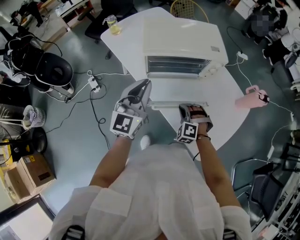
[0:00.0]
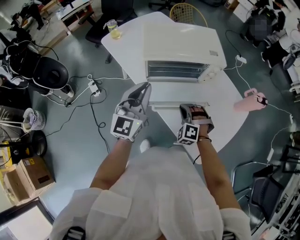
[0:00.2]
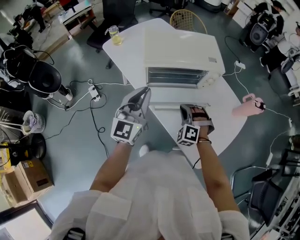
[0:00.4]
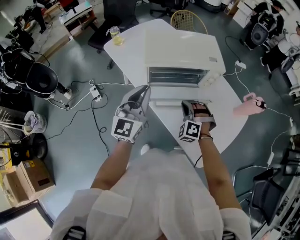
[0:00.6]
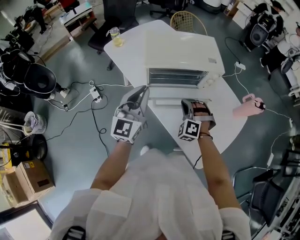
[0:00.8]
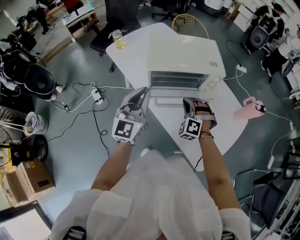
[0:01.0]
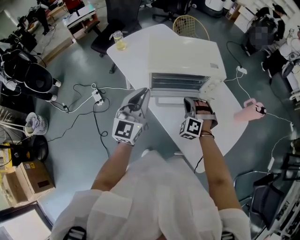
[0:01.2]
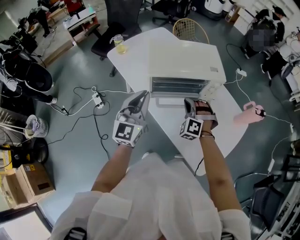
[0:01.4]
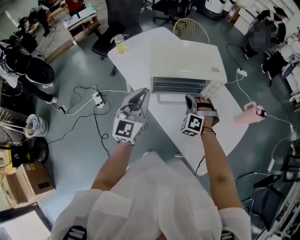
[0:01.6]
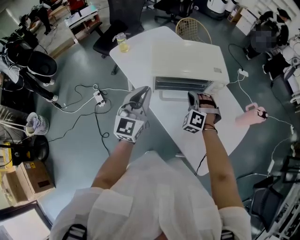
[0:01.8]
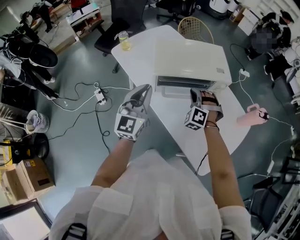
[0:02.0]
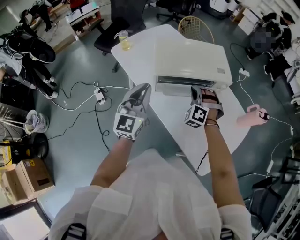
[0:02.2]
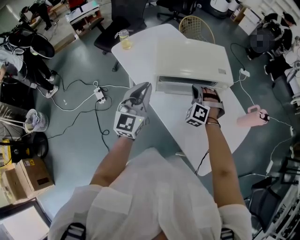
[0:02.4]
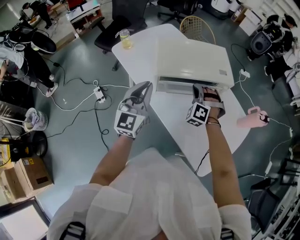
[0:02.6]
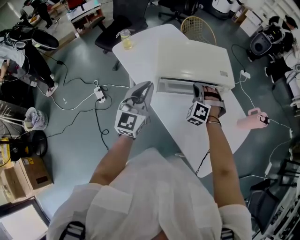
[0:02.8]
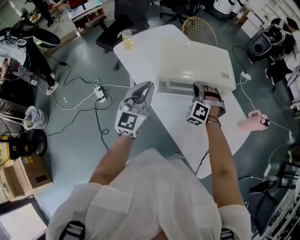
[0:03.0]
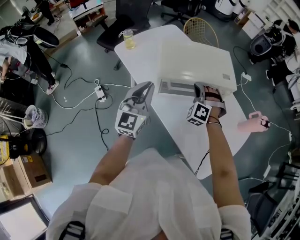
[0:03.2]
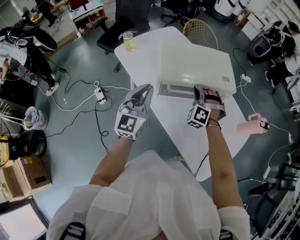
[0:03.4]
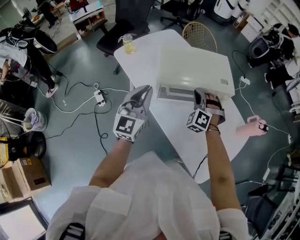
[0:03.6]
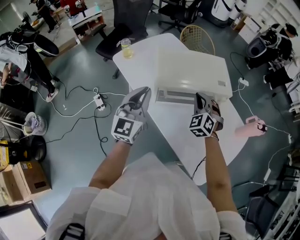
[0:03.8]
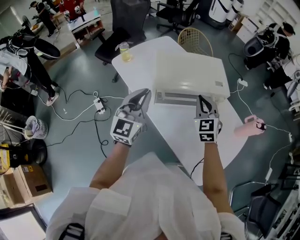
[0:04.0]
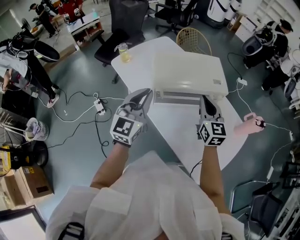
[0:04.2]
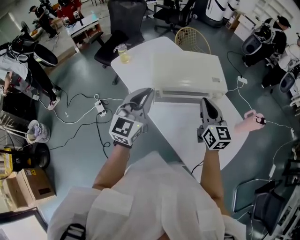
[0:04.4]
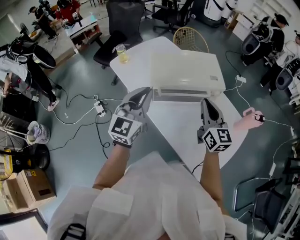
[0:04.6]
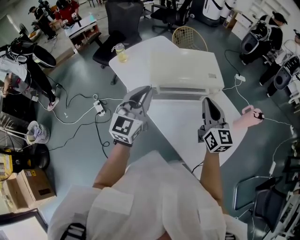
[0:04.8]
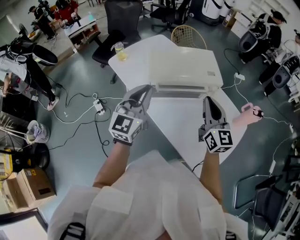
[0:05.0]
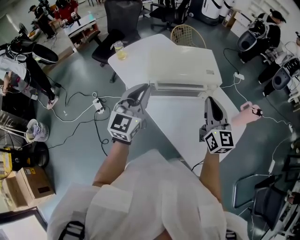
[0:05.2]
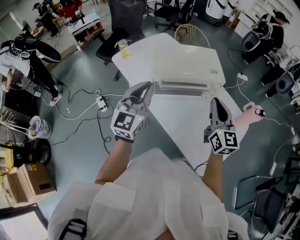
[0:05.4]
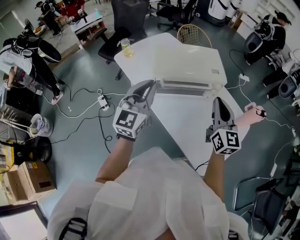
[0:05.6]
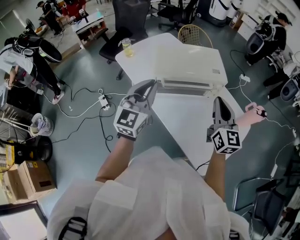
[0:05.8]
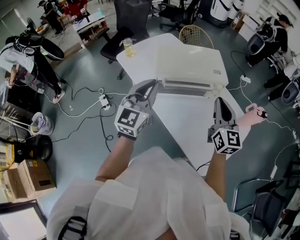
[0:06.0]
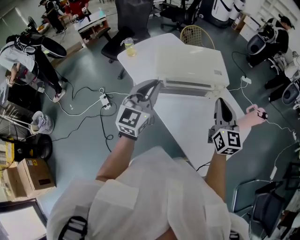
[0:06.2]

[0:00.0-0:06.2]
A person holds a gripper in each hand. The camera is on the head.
0:00.0 to 0:01.6: The right gripper is displaced upward and forward by some 15 cm.
0:01.6 to 0:03.2: The right gripper travels forward by some 5 cm. Meanwhile the left gripper ends up about 5 cm from where it was.
0:03.2 to 0:04.6: The left gripper is displaced upward by roughly 5 cm. The right gripper moves upward, backward and to the right, some 20 cm, and rolls clockwise, seen from behind, by roughly 80 degrees.
0:04.6 to 0:06.2: The right gripper shifts by roughly 5 cm.

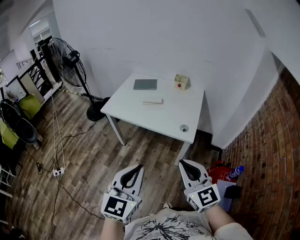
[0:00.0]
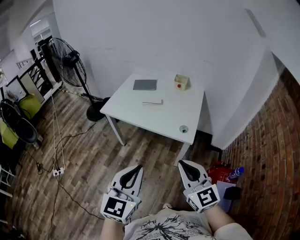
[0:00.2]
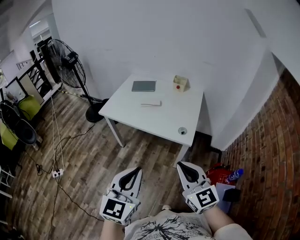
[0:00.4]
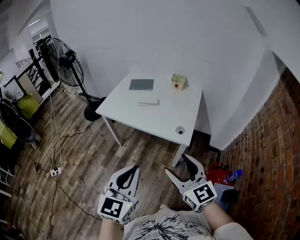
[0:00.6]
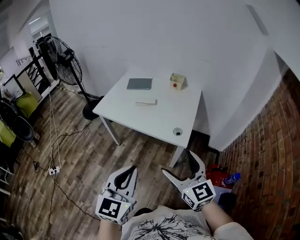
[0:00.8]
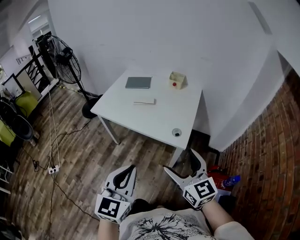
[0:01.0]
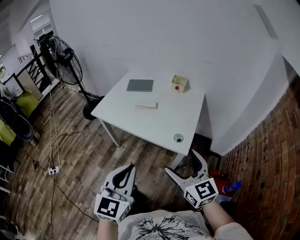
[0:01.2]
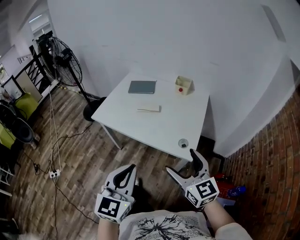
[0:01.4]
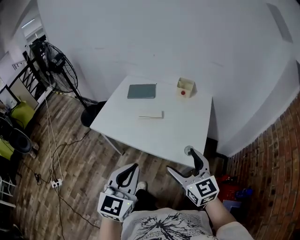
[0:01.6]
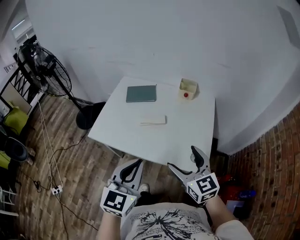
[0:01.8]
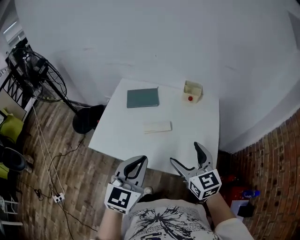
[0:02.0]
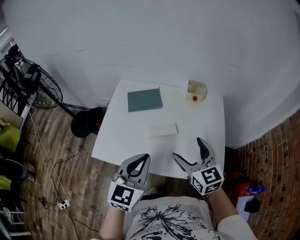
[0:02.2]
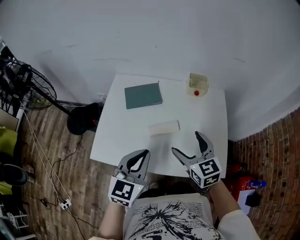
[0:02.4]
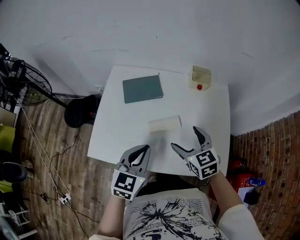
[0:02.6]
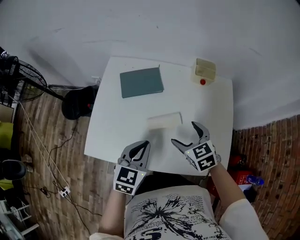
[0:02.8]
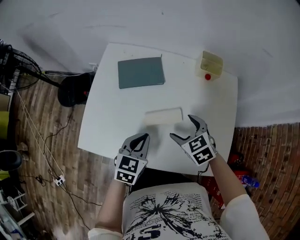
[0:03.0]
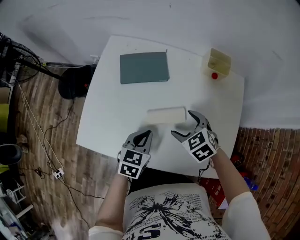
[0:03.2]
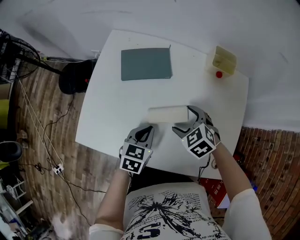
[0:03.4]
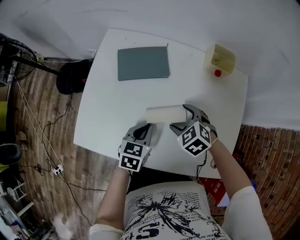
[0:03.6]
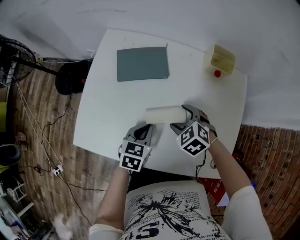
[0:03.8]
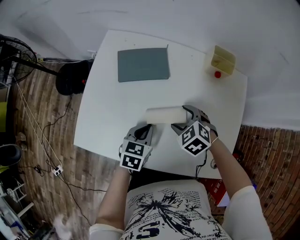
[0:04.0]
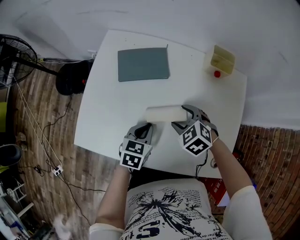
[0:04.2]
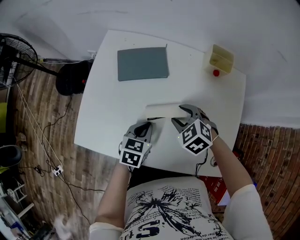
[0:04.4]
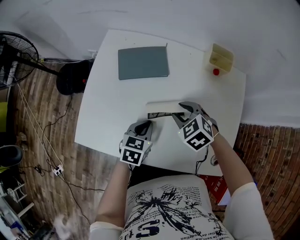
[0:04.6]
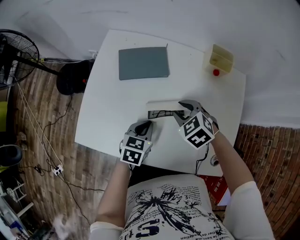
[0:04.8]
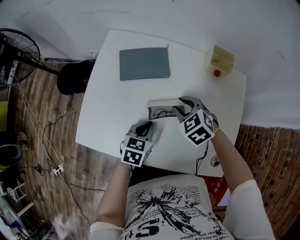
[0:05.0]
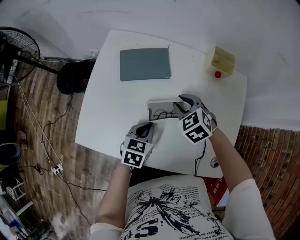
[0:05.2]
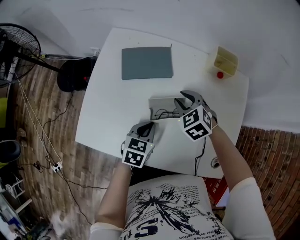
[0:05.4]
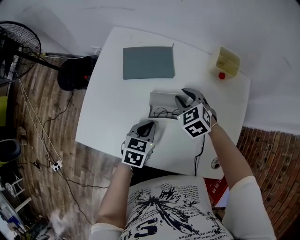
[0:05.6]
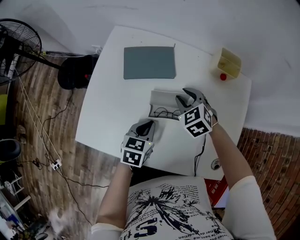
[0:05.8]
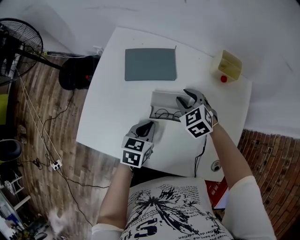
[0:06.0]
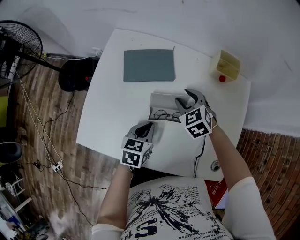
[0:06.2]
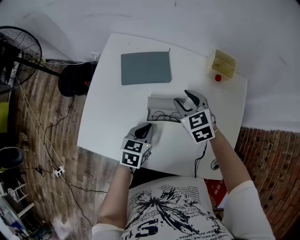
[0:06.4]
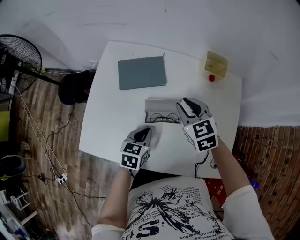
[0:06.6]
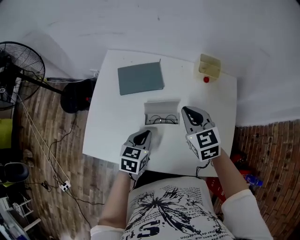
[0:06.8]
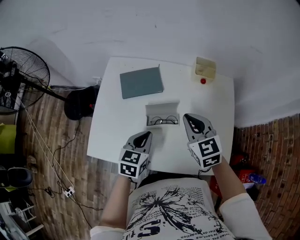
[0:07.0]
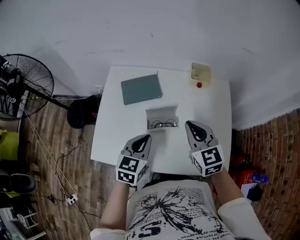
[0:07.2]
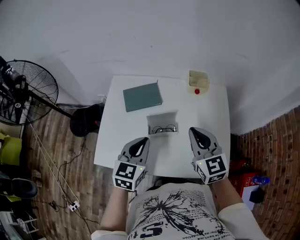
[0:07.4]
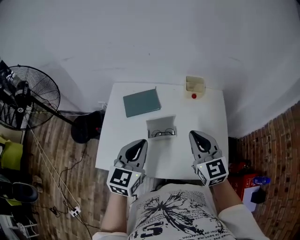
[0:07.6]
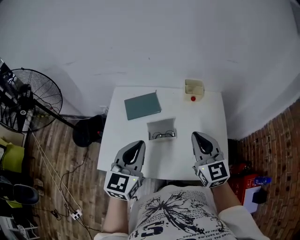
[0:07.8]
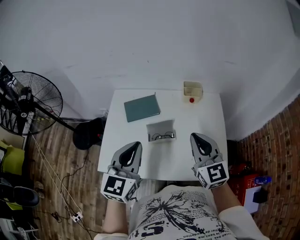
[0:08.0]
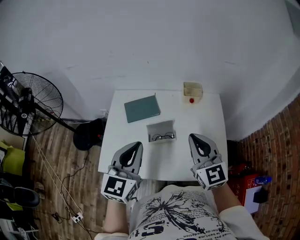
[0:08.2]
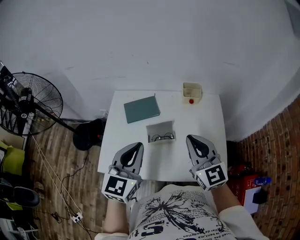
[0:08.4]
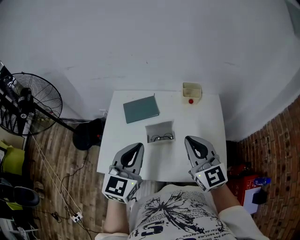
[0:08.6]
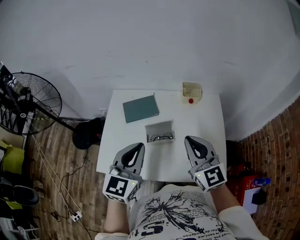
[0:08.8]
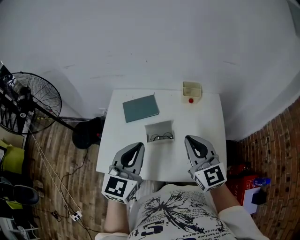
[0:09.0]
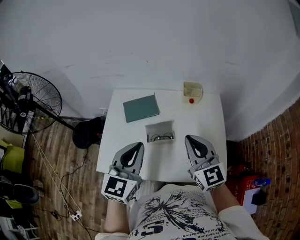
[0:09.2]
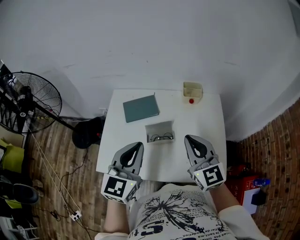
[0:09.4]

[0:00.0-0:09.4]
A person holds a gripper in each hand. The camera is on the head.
0:00.0 to 0:01.6: The two grippers go some 25 cm forward. The right gripper opens.
0:01.6 to 0:03.2: The right gripper heads forward, downward and to the left, covering roughly 40 cm, and tilts its fingers some 40 degrees downward, while the left gripper moves forward and downward, some 40 cm, and swivels roughly 30 degrees.
0:03.2 to 0:04.8: The right gripper closes its fingers.
0:04.8 to 0:06.2: The right gripper shifts about 10 cm forward.
0:06.2 to 0:07.8: The right gripper shifts about 30 cm upward and backward, angles its fingers upward, by roughly 40 degrees, and closes, while the left gripper goes approximately 30 cm upward, and points its fingers some 30 degrees further upward.
0:07.8 to 0:09.4: The grippers move only a little.

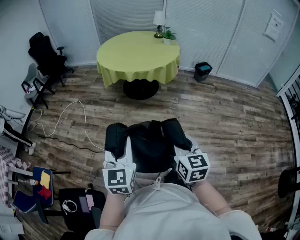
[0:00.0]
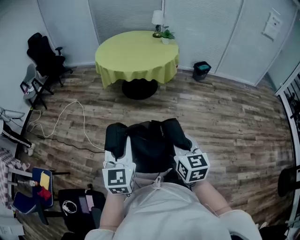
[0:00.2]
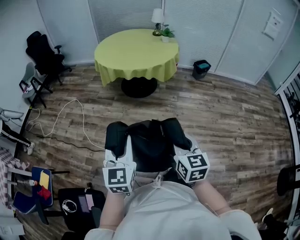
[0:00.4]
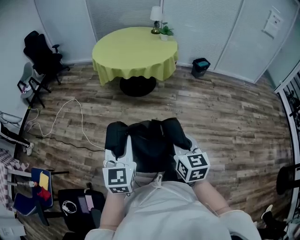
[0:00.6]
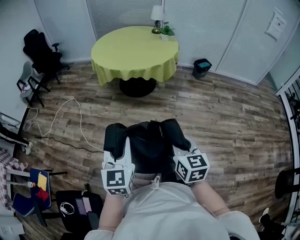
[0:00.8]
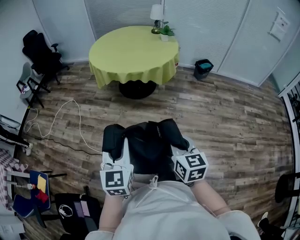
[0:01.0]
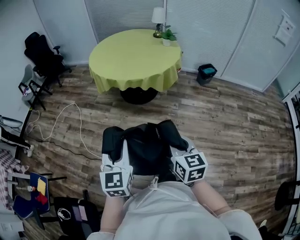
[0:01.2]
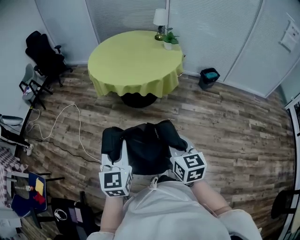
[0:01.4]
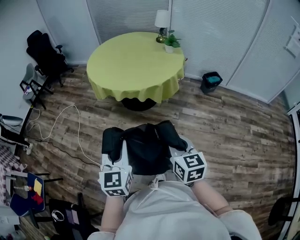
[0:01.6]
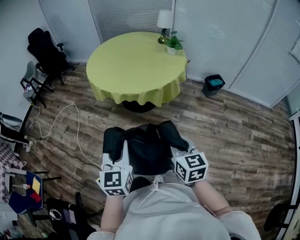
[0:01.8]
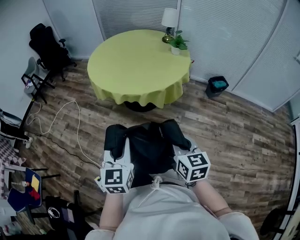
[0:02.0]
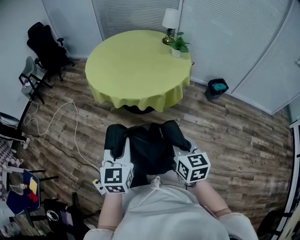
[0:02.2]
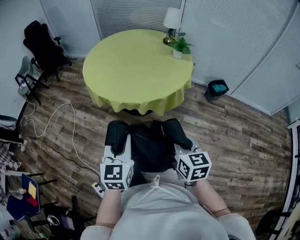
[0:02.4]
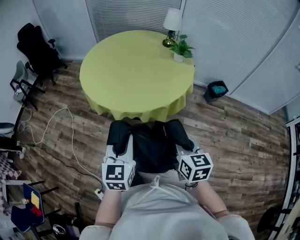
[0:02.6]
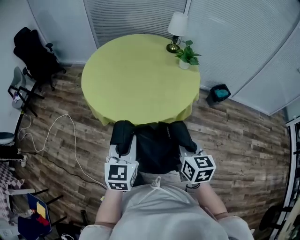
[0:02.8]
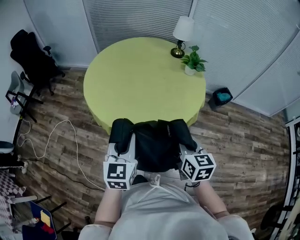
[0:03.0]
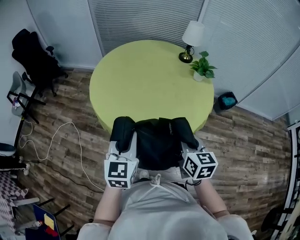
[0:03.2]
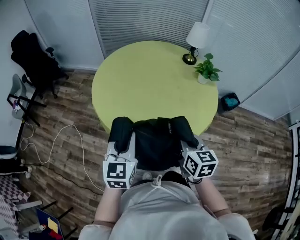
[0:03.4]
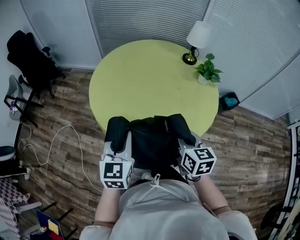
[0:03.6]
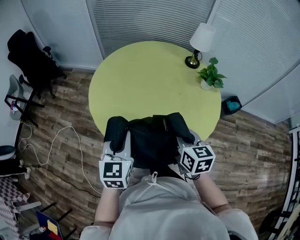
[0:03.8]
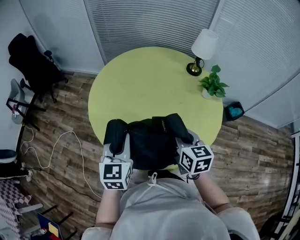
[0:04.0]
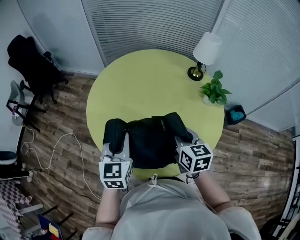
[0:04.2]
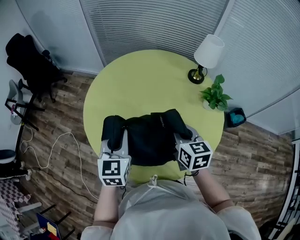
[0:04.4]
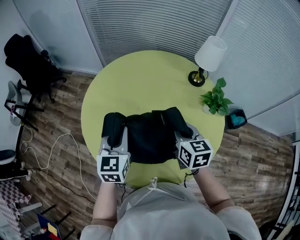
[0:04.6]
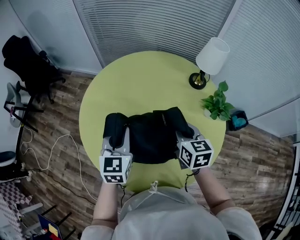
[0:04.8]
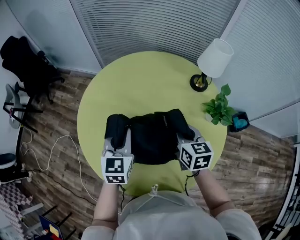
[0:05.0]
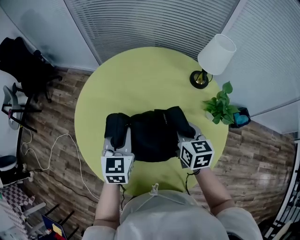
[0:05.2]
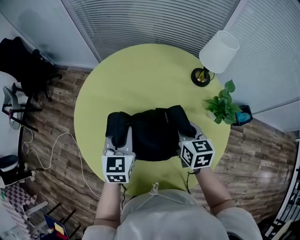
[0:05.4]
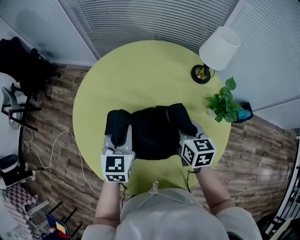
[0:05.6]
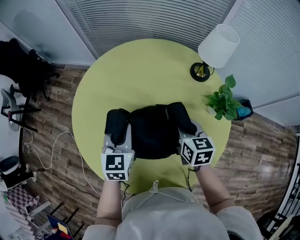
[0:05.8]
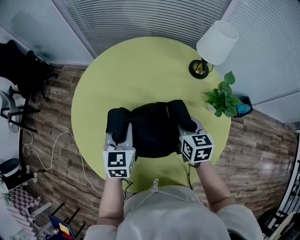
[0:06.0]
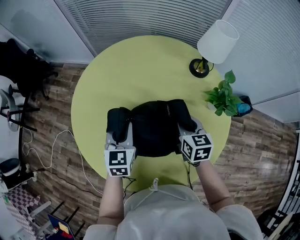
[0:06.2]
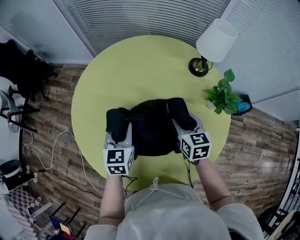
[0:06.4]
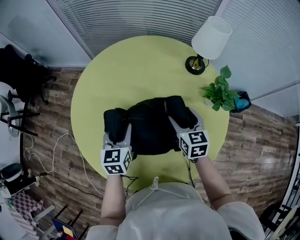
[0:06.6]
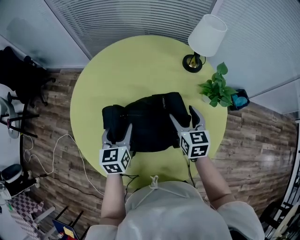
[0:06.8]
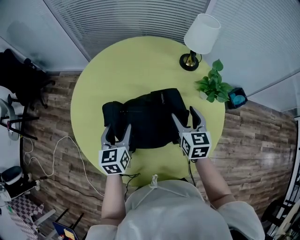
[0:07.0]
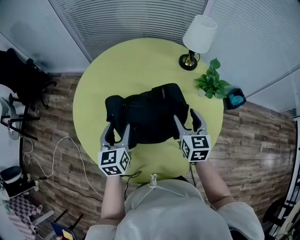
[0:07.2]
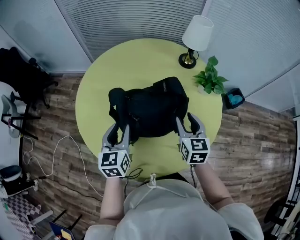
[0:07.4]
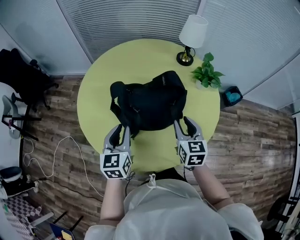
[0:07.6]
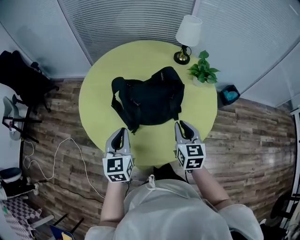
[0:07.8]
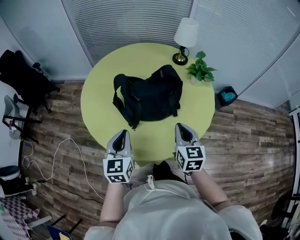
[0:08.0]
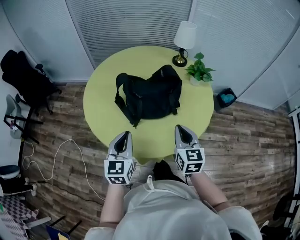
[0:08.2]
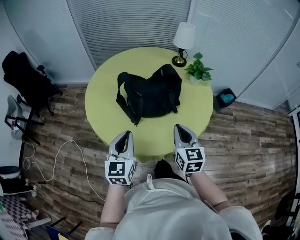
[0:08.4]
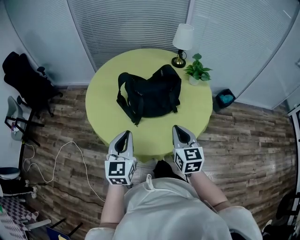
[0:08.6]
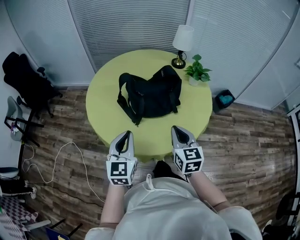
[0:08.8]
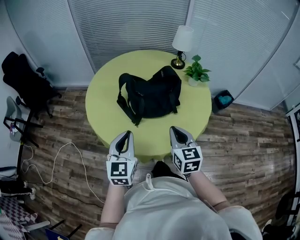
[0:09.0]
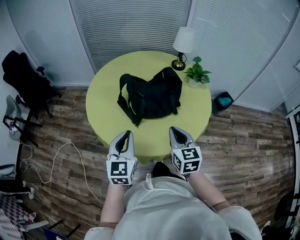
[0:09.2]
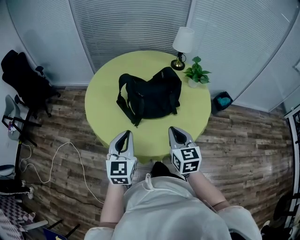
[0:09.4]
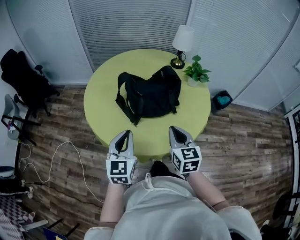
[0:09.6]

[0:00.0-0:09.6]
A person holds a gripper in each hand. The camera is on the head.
0:00.0 to 0:01.6: Both grippers move forward and to the right, some 35 cm.
0:01.6 to 0:03.2: The two grippers travel together, forward, about 50 cm.
0:03.2 to 0:04.8: The two grippers go about 40 cm forward.
0:04.8 to 0:06.4: The two grippers go some 10 cm downward and forward. The right gripper opens up.
0:06.4 to 0:08.0: Both grippers move backward, approximately 30 cm. The right gripper closes, while the left gripper opens and closes again.
0:08.0 to 0:09.6: The two grippers go roughly 5 cm backward.
